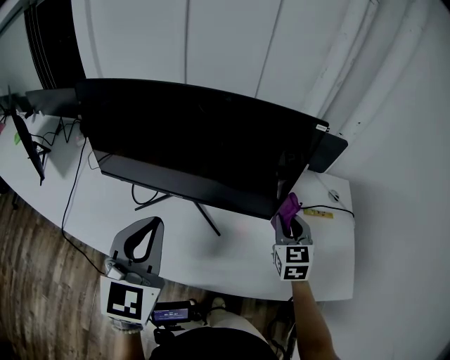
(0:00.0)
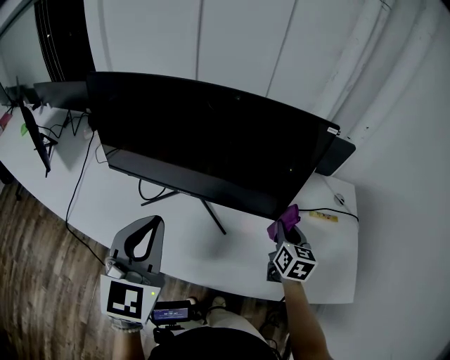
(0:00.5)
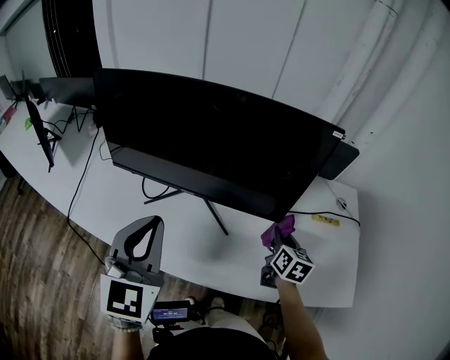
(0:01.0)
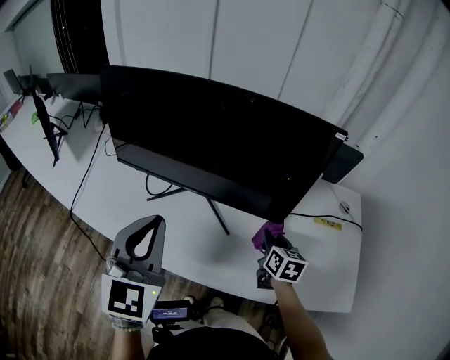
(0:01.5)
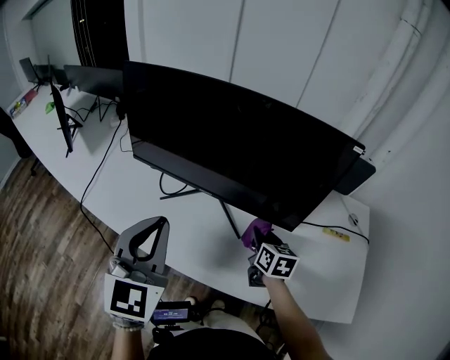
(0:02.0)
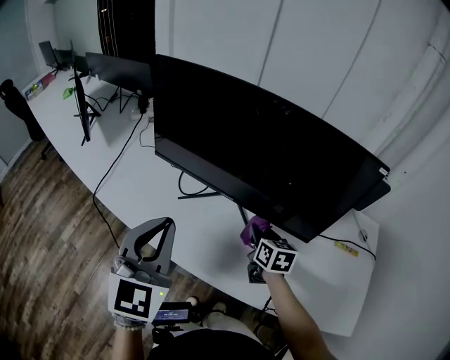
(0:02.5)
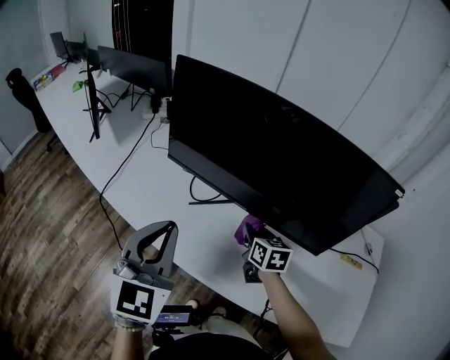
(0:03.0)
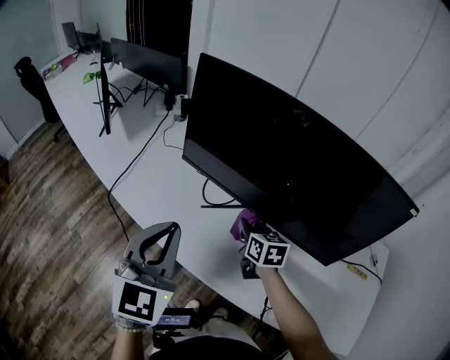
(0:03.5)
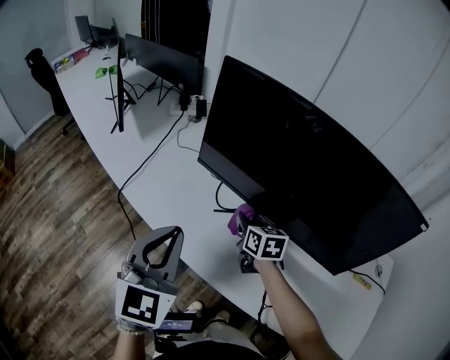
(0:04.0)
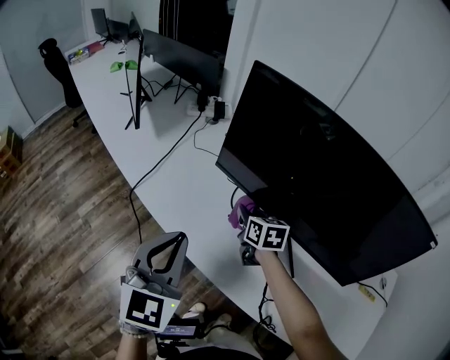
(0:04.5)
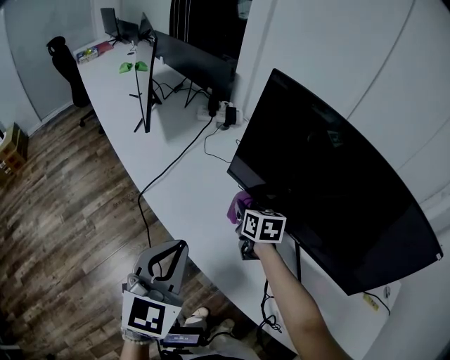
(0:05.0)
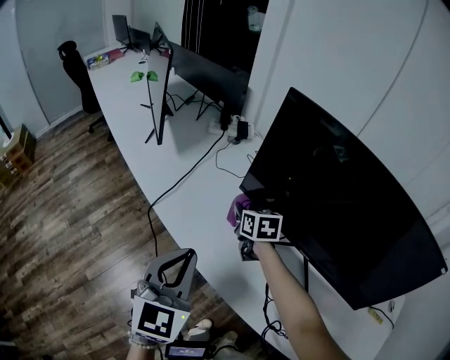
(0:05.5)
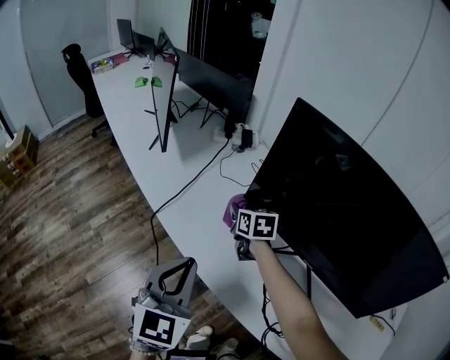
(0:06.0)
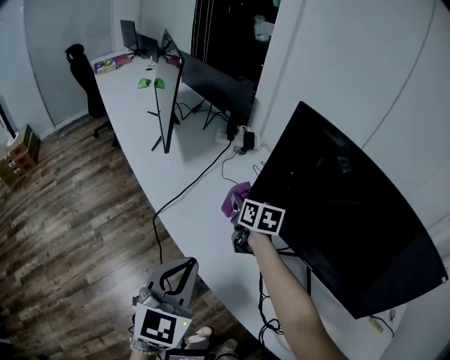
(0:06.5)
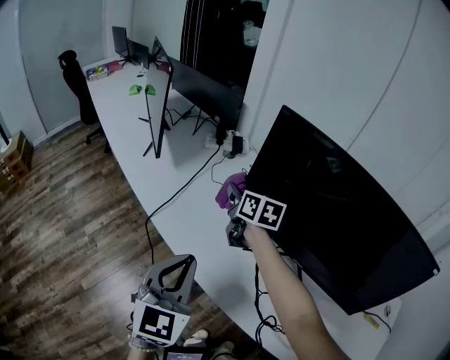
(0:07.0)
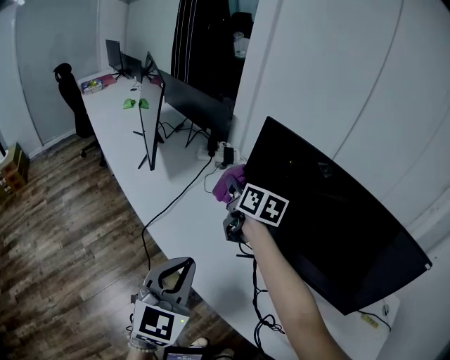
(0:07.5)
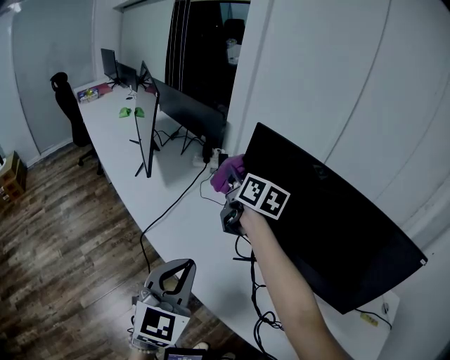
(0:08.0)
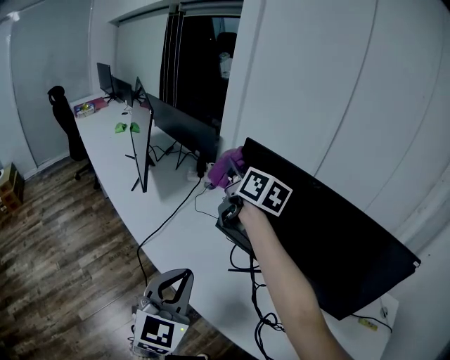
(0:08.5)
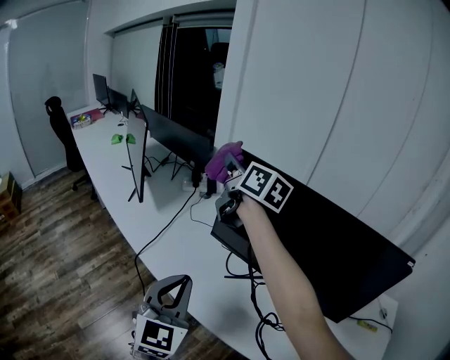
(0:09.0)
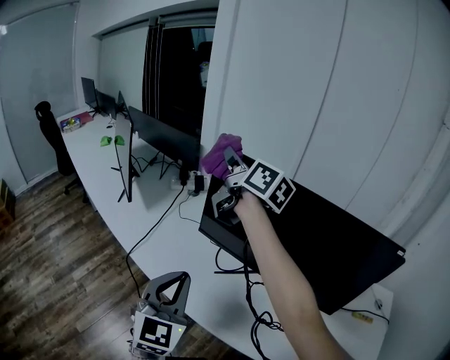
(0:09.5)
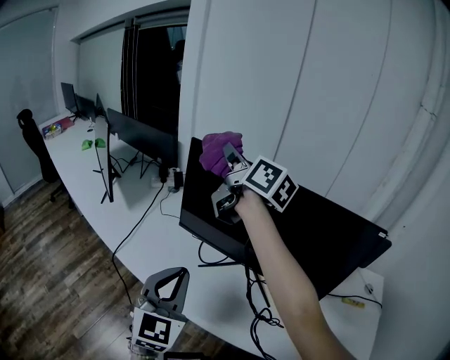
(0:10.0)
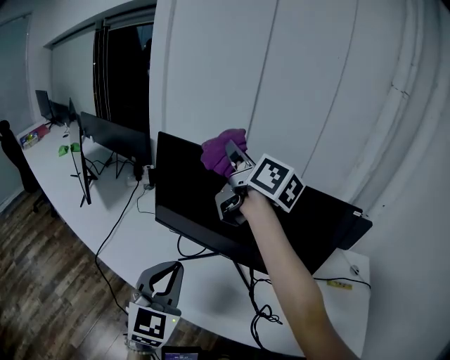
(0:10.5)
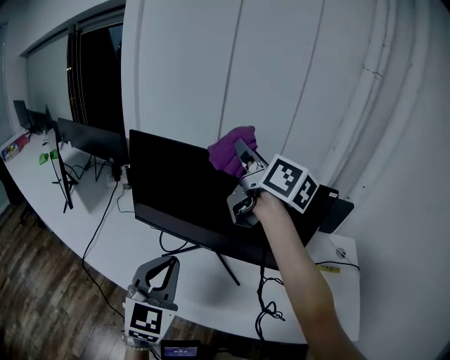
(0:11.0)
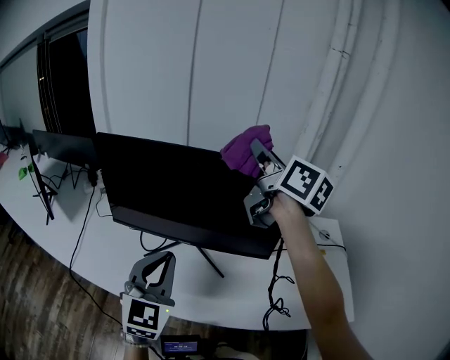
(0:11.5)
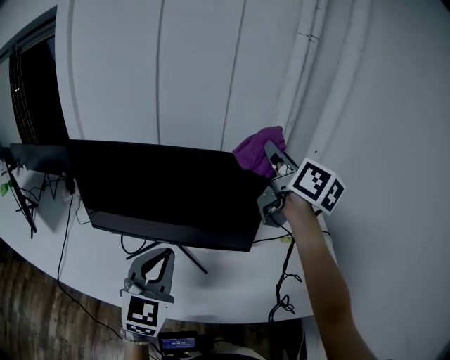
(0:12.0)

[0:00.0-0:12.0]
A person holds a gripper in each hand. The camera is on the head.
0:00.0 to 0:02.0: The right gripper shifts about 15 cm to the left and downward, and rotates some 40 degrees. Meanwhile the left gripper ends up about 5 cm from where it was.
0:02.0 to 0:04.0: The right gripper goes roughly 30 cm to the left and forward, and rotates some 20 degrees, while the left gripper moves to the left, roughly 15 cm.
0:04.0 to 0:06.0: The right gripper heads to the left and forward, covering about 25 cm; the left gripper travels to the left by approximately 10 cm.
0:06.0 to 0:08.0: The left gripper changes place by roughly 5 cm. The right gripper heads upward, covering roughly 25 cm, and turns by about 30 degrees.
0:08.0 to 0:10.0: The left gripper travels to the right by about 10 cm; the right gripper goes some 20 cm upward and to the right, and changes its angle by approximately 20 degrees.
0:10.0 to 0:12.0: The right gripper ends up approximately 50 cm from where it was, and turns by some 40 degrees; the left gripper moves some 20 cm, and turns by approximately 30 degrees.

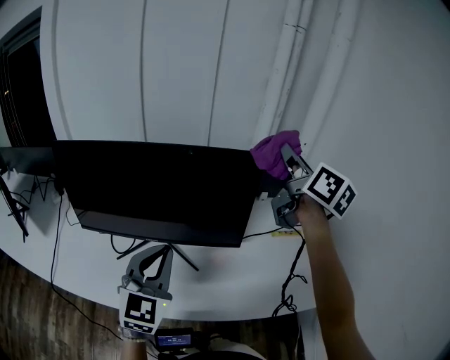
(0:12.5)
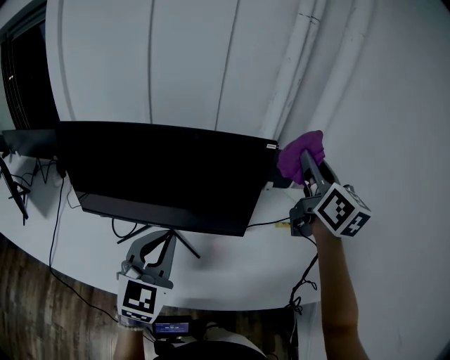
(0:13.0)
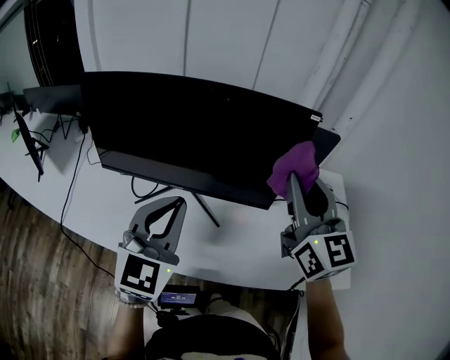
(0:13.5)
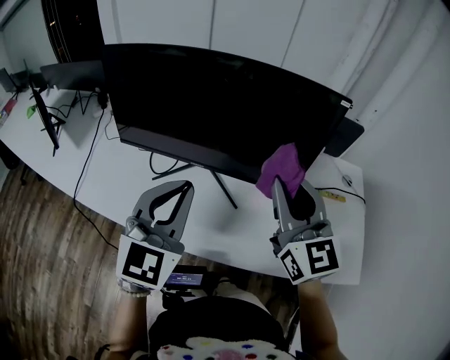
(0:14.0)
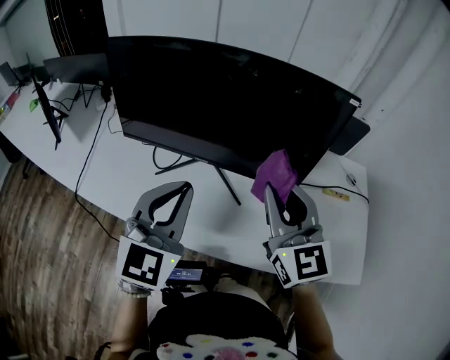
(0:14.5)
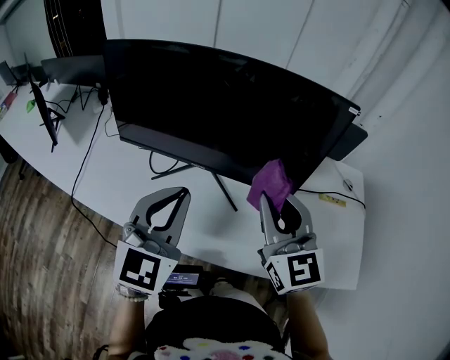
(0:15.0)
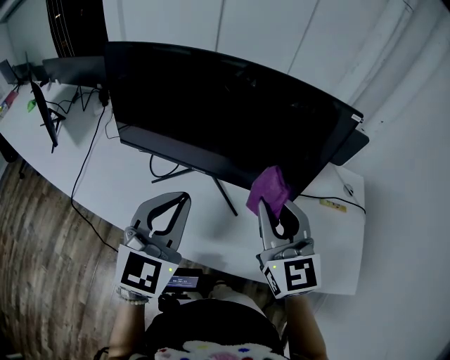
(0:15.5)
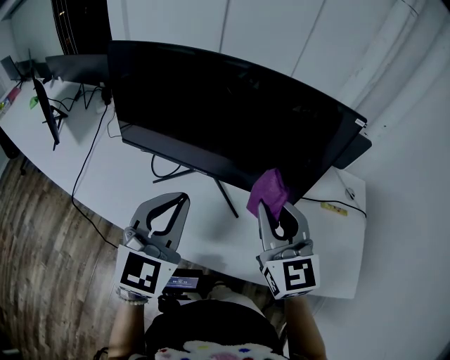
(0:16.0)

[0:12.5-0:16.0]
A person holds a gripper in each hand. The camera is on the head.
0:12.5 to 0:14.5: The left gripper moves to the left, approximately 5 cm, while the right gripper is displaced to the left, downward and backward by some 30 cm, and turns by some 50 degrees.
0:14.5 to 0:16.0: The grippers move only a little.

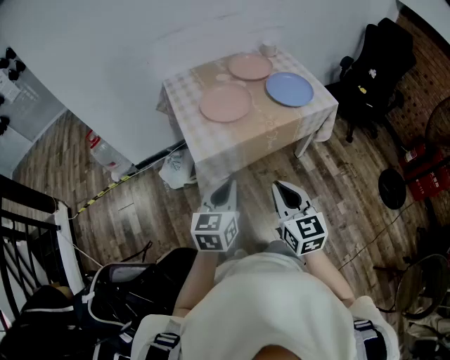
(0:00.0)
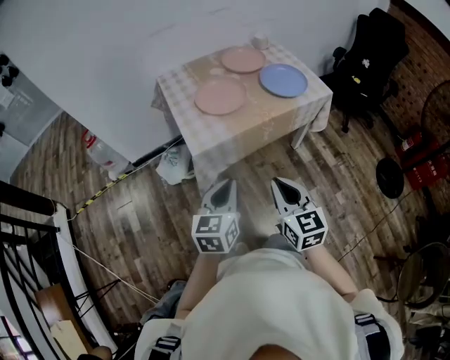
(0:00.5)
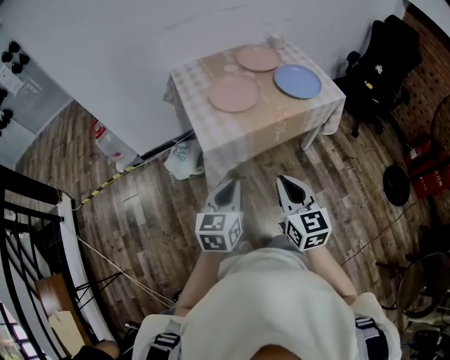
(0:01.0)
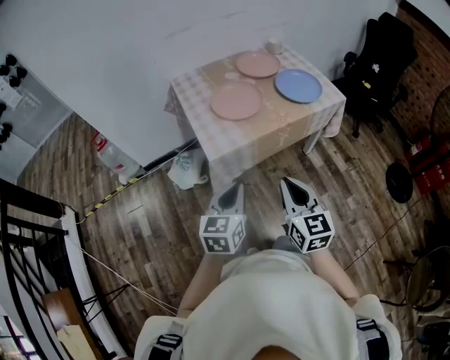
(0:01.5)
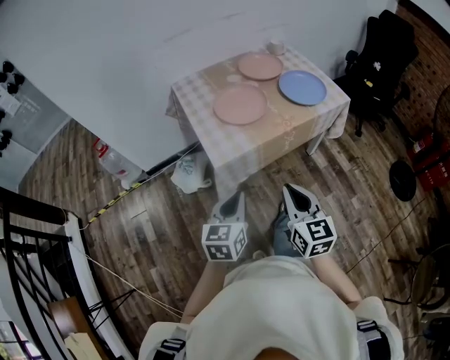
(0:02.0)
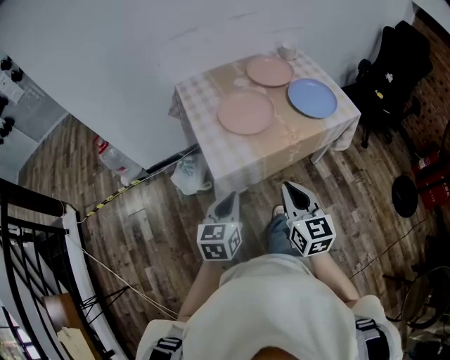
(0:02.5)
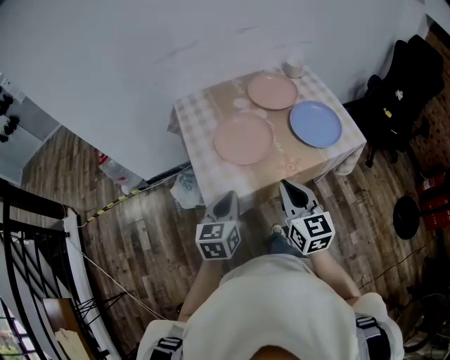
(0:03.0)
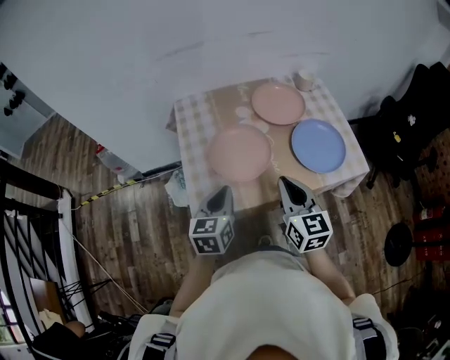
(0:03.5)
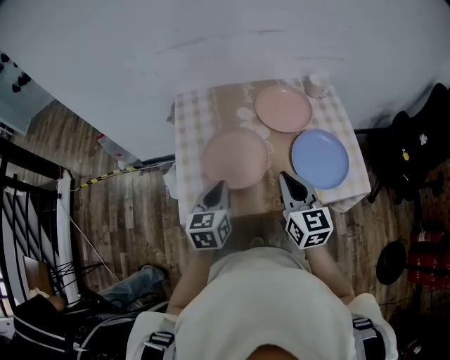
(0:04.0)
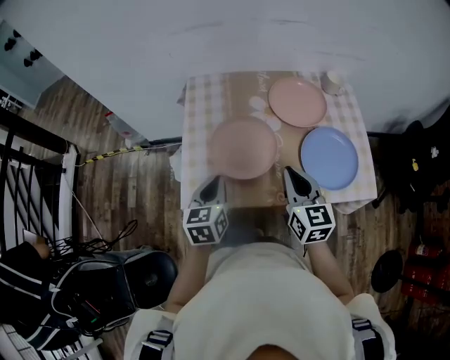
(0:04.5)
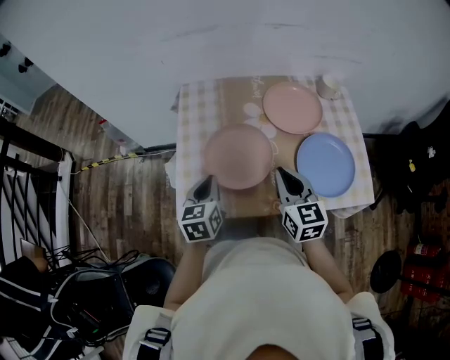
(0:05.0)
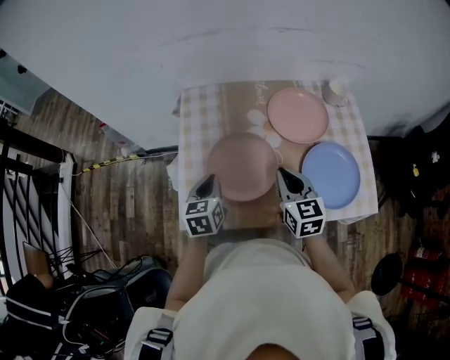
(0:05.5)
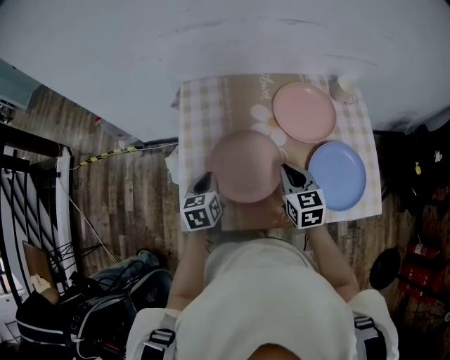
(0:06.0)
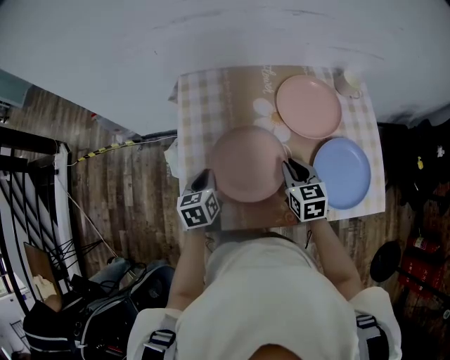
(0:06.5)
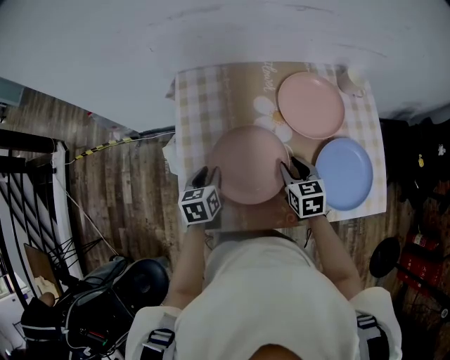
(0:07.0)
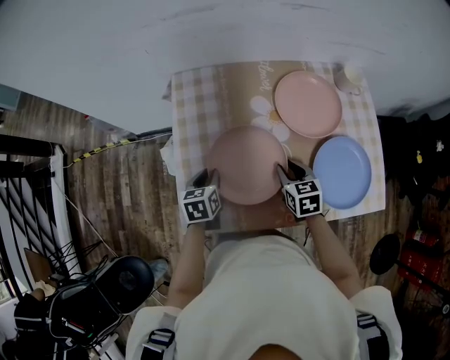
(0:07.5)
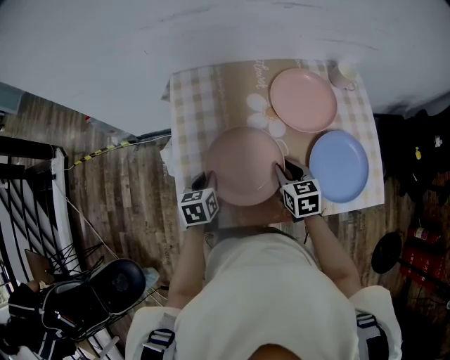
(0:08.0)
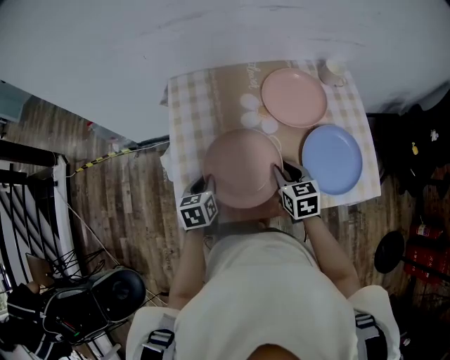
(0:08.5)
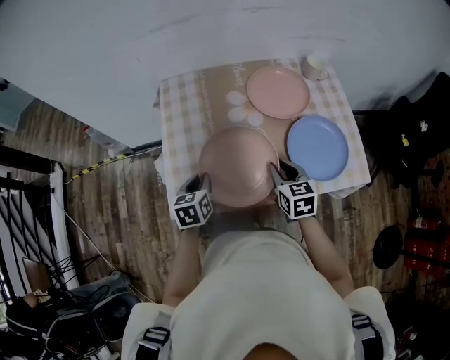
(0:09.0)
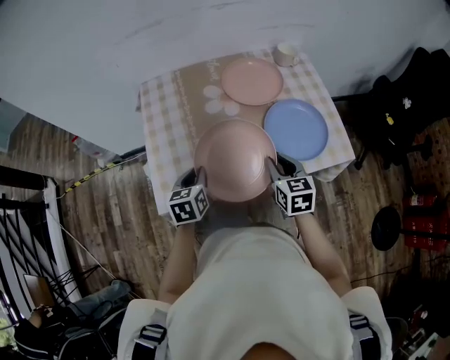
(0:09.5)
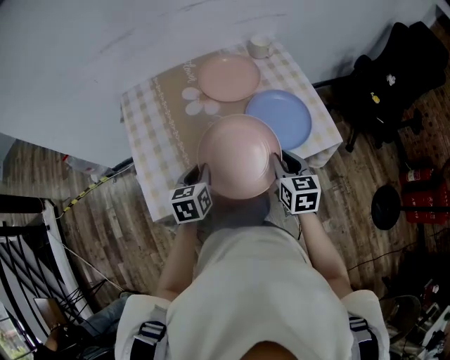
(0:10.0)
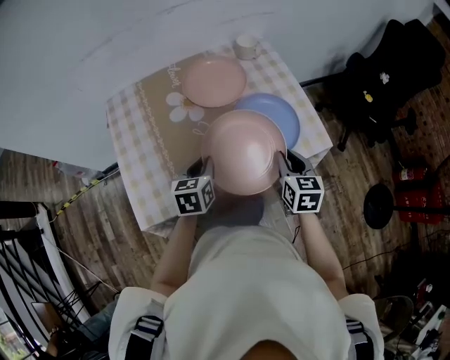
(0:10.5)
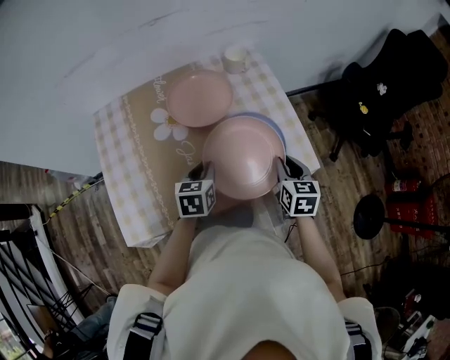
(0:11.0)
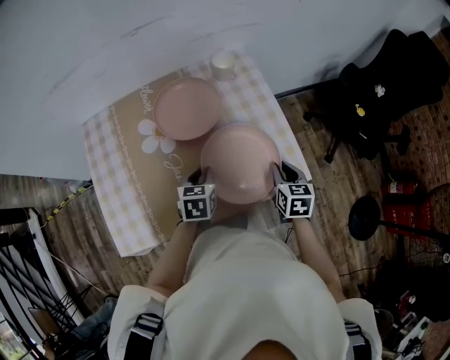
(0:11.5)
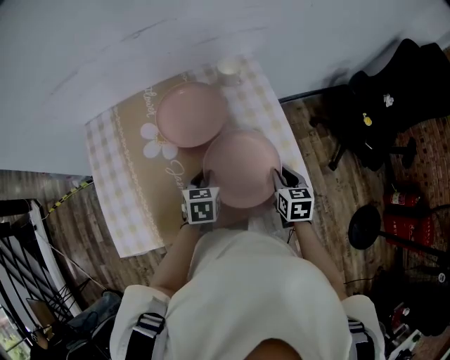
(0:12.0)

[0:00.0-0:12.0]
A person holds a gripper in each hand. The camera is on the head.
0:00.0 to 0:02.0: The left gripper goes roughly 5 cm to the left.
0:02.0 to 0:04.0: The grippers both shift forward by roughly 35 cm. The left gripper changes its angle by some 20 degrees.
0:04.0 to 0:06.0: The left gripper moves downward, forward and to the left, approximately 15 cm, while the right gripper shifts roughly 15 cm downward and forward.
0:06.0 to 0:08.0: The right gripper goes some 5 cm downward, and opens up.
0:08.0 to 0:10.0: Both grippers travel together to the right, backward and upward, some 20 cm. The right gripper changes its angle by approximately 20 degrees.
0:10.0 to 0:12.0: The left gripper goes about 25 cm forward and to the right. The right gripper is displaced to the right, forward and downward by approximately 25 cm.
